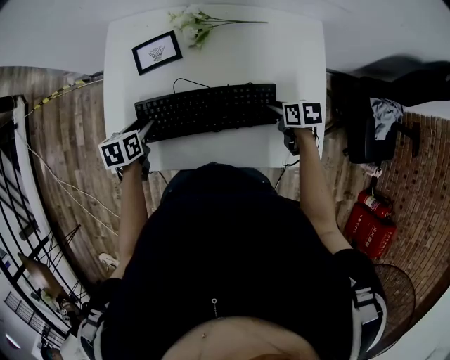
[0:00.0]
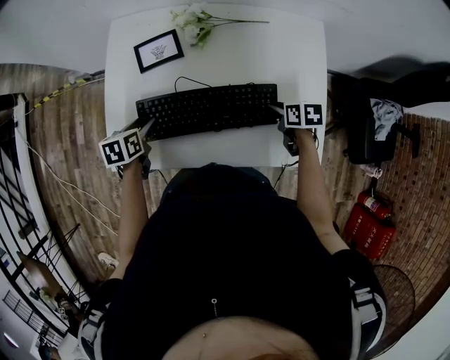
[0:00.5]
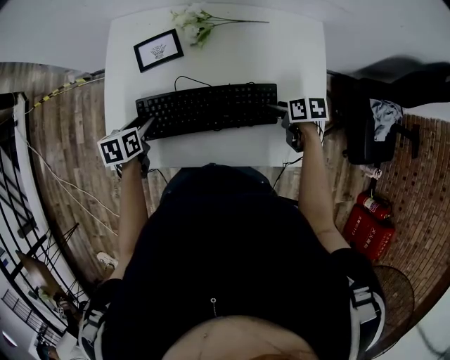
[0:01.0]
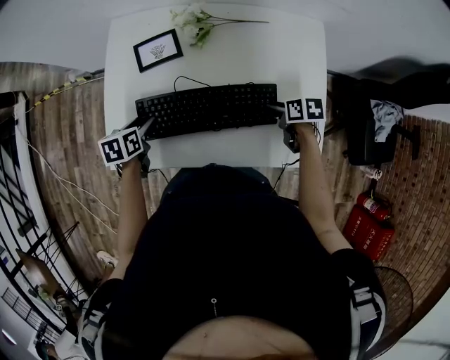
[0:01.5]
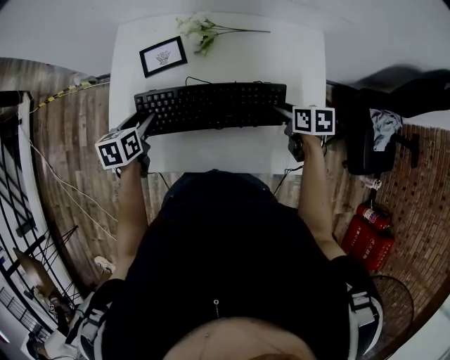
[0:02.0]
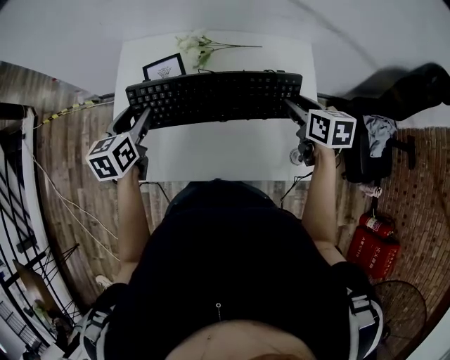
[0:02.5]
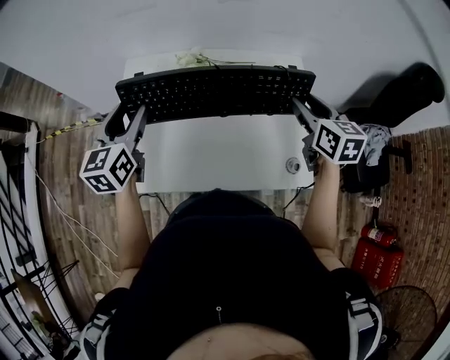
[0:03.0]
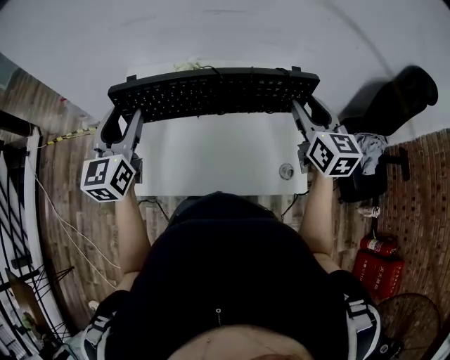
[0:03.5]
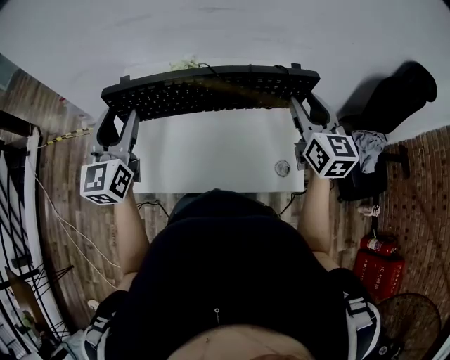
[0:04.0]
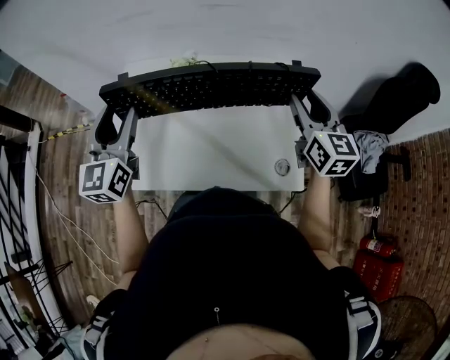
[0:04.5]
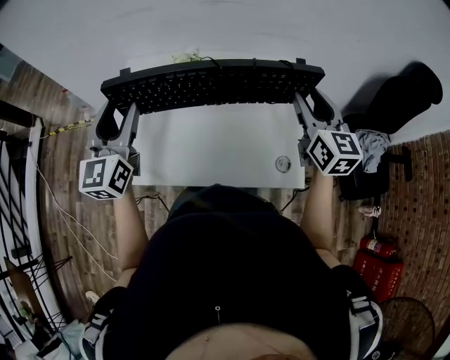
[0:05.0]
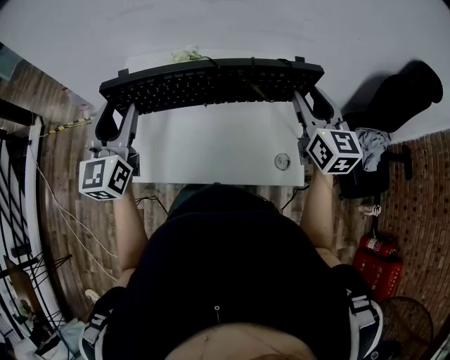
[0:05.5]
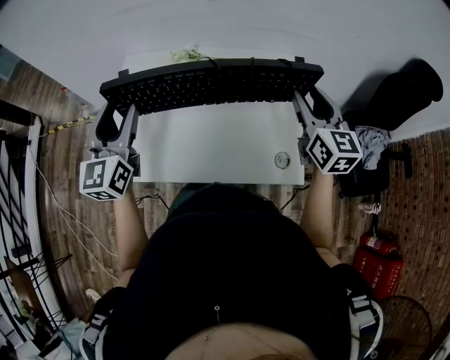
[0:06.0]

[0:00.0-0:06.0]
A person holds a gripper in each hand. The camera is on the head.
0:00.0 to 0:02.0: The right gripper is displaced upward by about 5 cm, while the left gripper shifts by roughly 5 cm.
0:02.0 to 0:04.0: The two grippers go roughly 25 cm upward. The left gripper tilts its fingers some 50 degrees upward, while the right gripper tilts its fingers about 50 degrees upward.
0:04.0 to 0:06.0: The grippers stay close to where they were, moving slightly.

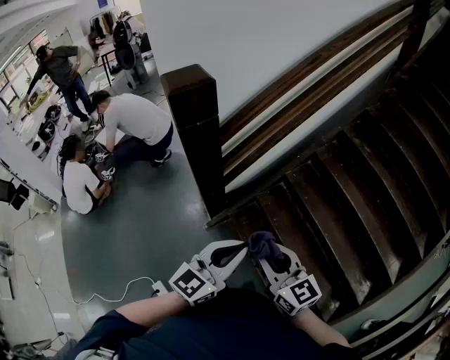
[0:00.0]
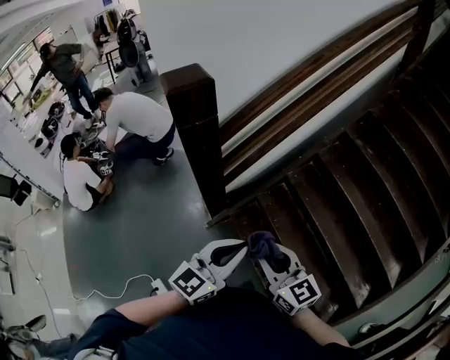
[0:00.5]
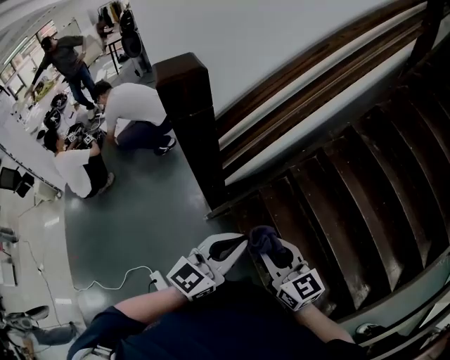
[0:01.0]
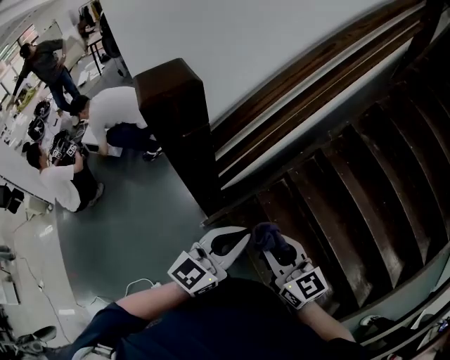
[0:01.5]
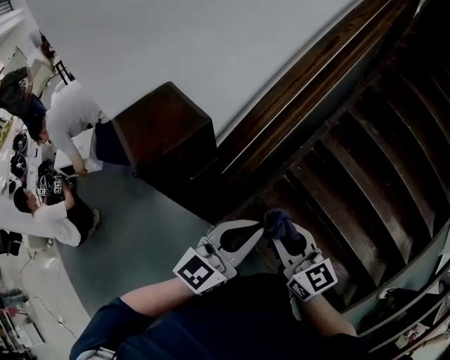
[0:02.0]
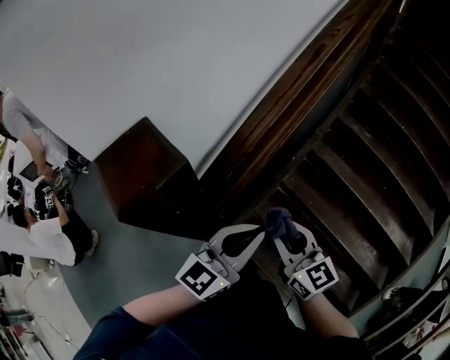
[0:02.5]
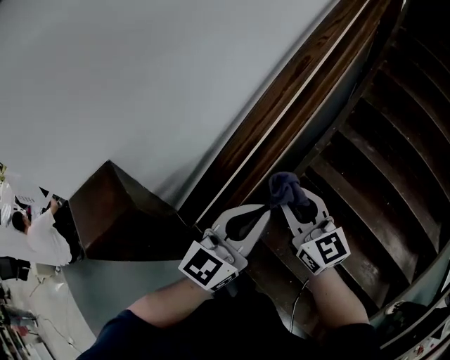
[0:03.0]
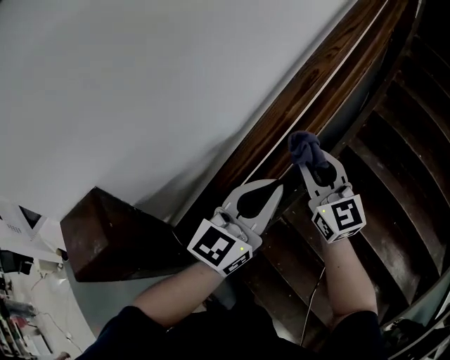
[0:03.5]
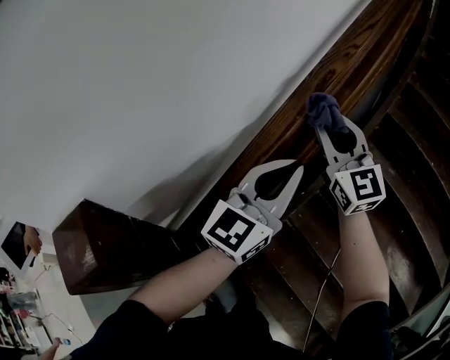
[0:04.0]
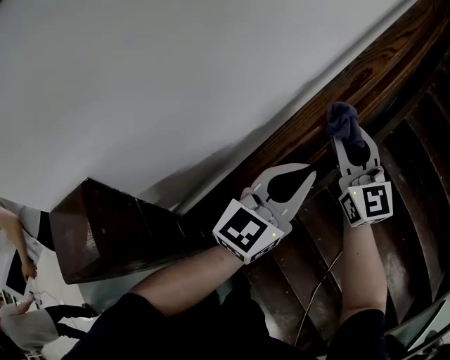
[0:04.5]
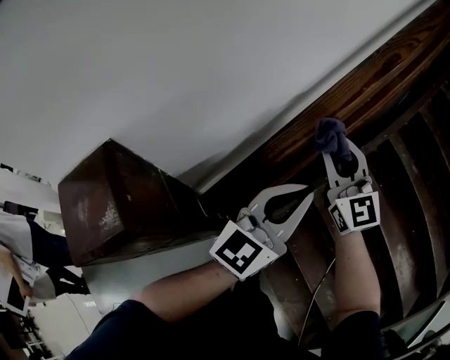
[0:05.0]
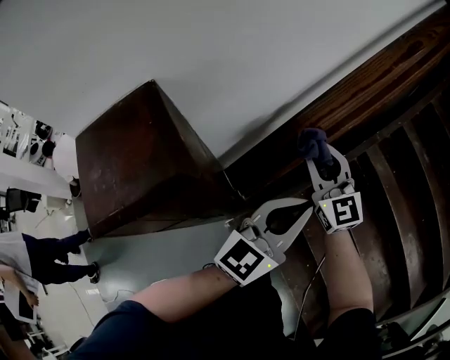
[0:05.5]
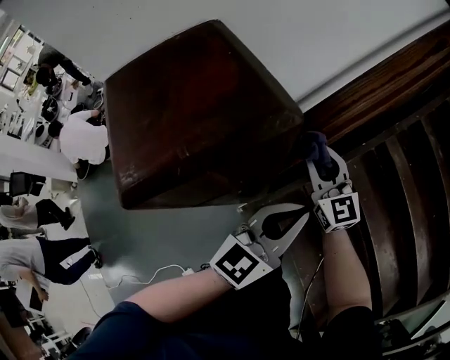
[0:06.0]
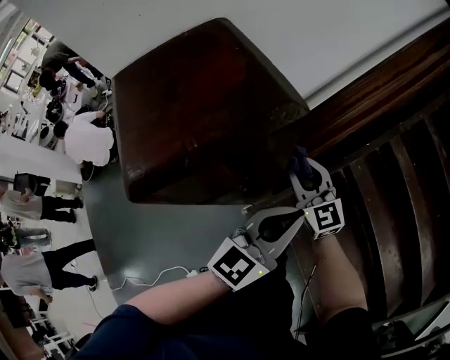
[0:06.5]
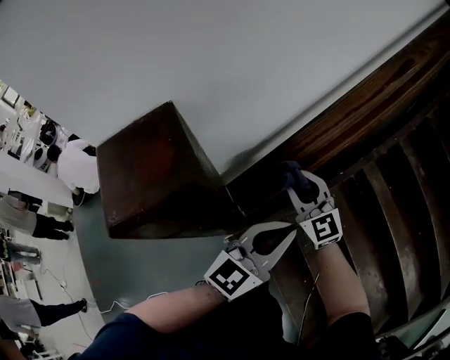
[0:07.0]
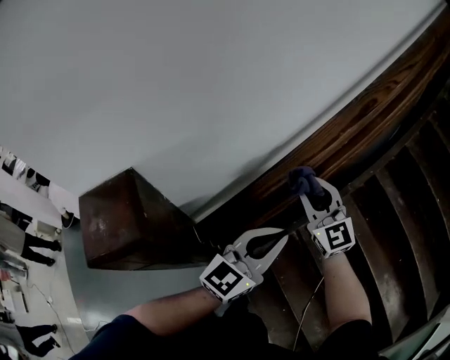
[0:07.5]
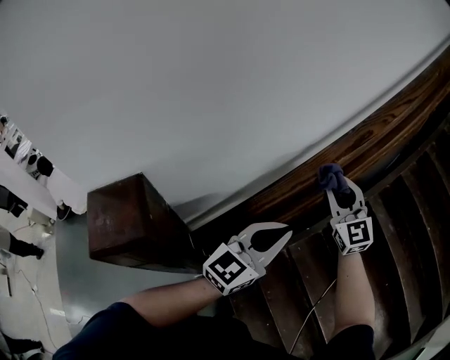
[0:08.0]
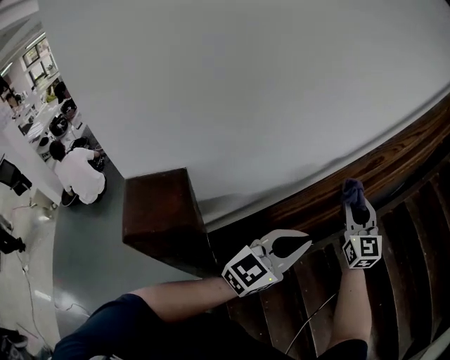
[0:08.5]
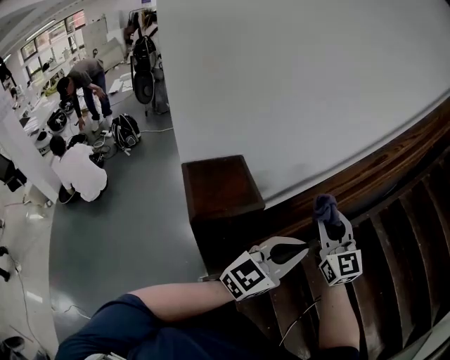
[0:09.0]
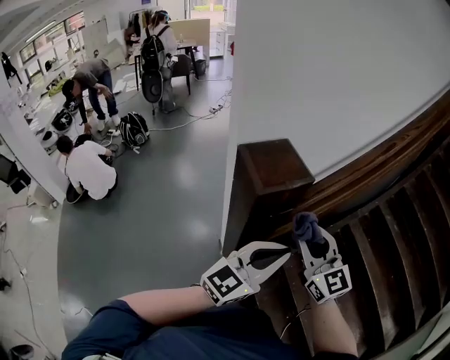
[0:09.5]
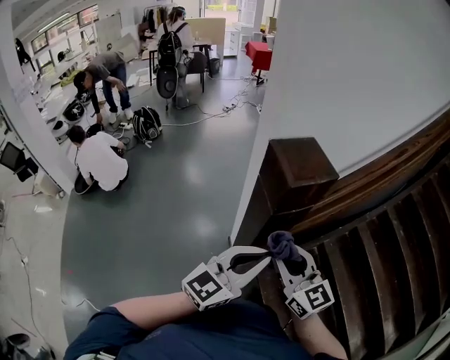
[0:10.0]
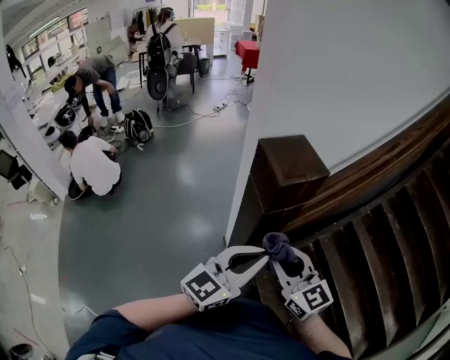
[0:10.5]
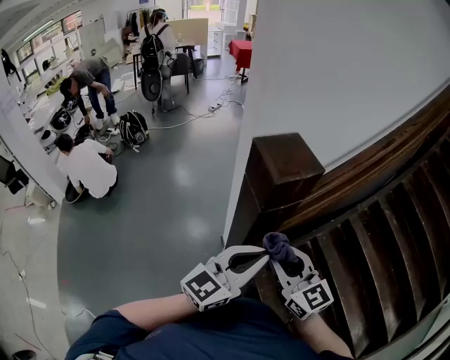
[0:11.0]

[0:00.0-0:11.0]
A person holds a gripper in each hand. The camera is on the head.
0:00.0 to 0:02.0: The grippers both shift forward by approximately 25 cm.
0:02.0 to 0:03.5: The grippers both shift forward by approximately 35 cm. The right gripper rotates approximately 20 degrees.
0:03.5 to 0:05.5: The right gripper is displaced to the left, downward and backward by approximately 25 cm. The left gripper heads downward, backward and to the left, covering about 20 cm.
0:05.5 to 0:07.5: The left gripper is displaced forward and to the right by about 10 cm, while the right gripper shifts about 15 cm to the right, forward and upward.
0:07.5 to 0:09.0: The grippers both shift backward, upward and to the left by some 15 cm.
0:09.0 to 0:11.0: The left gripper travels to the left and backward by some 30 cm, while the right gripper travels backward and to the left by about 35 cm, and rotates approximately 20 degrees.

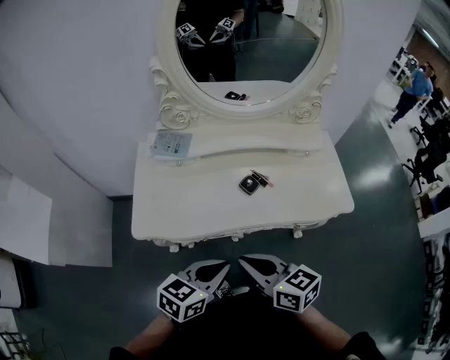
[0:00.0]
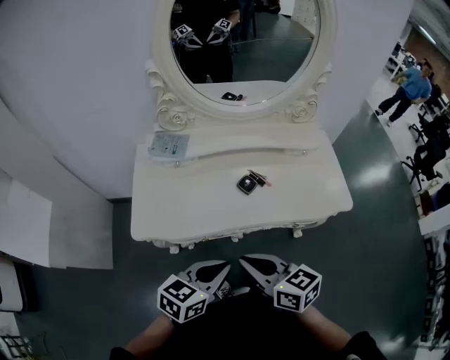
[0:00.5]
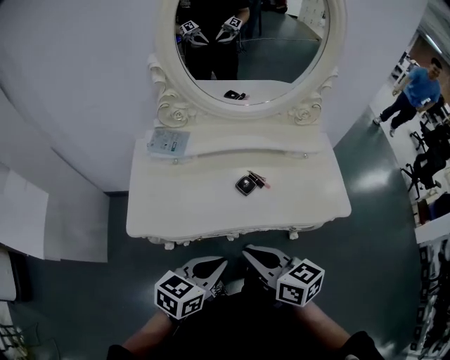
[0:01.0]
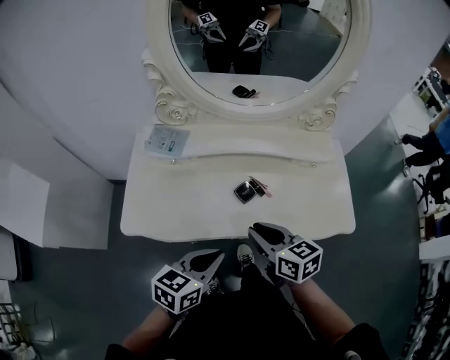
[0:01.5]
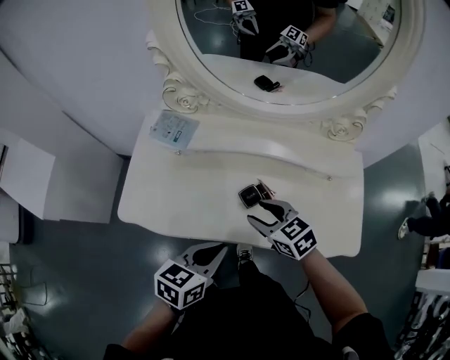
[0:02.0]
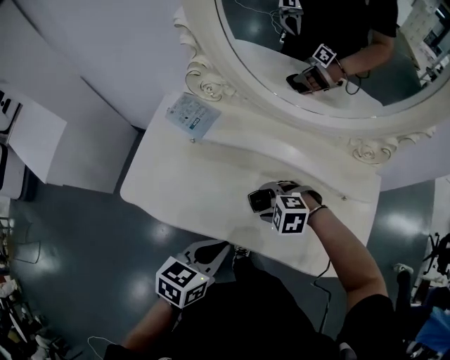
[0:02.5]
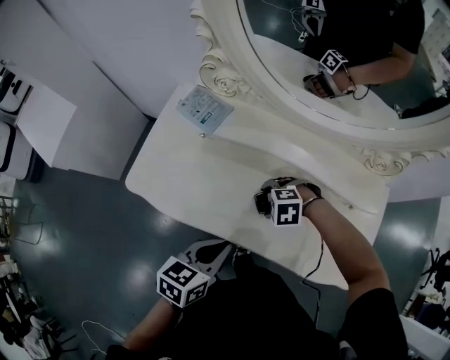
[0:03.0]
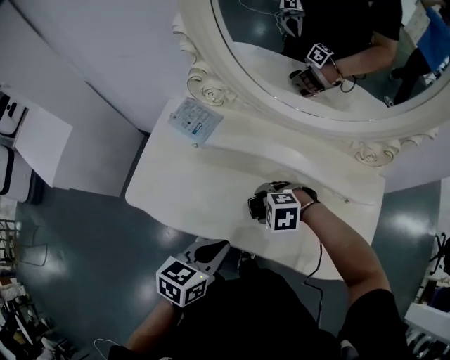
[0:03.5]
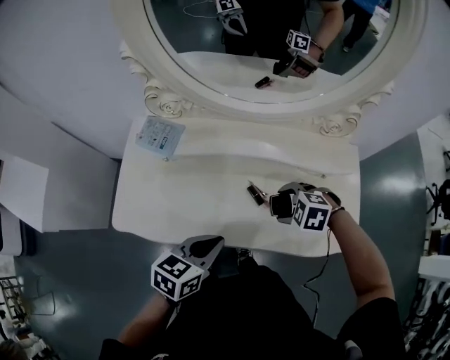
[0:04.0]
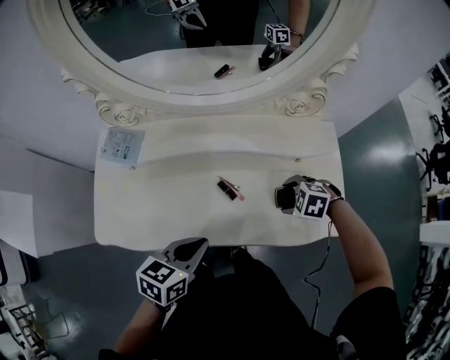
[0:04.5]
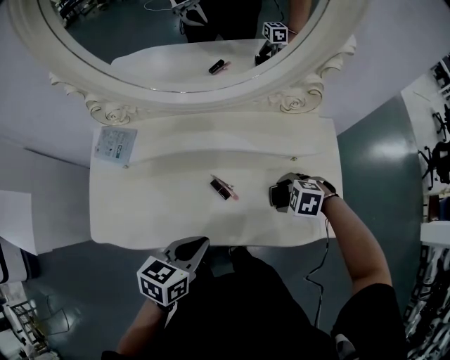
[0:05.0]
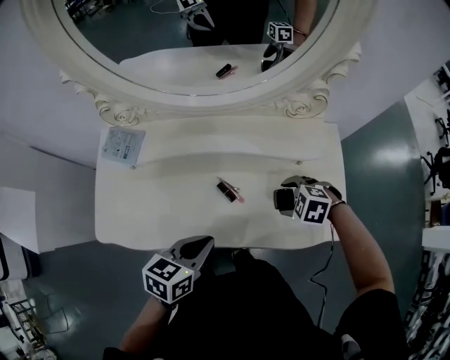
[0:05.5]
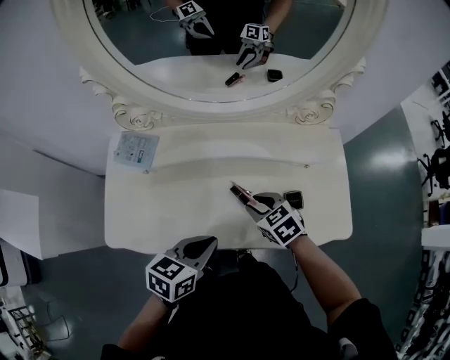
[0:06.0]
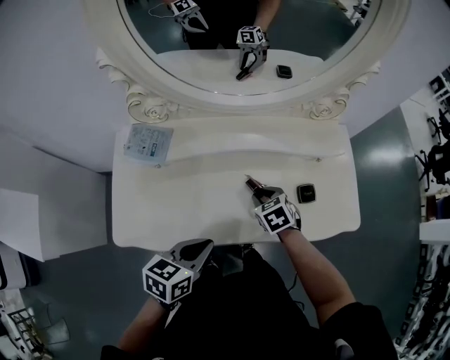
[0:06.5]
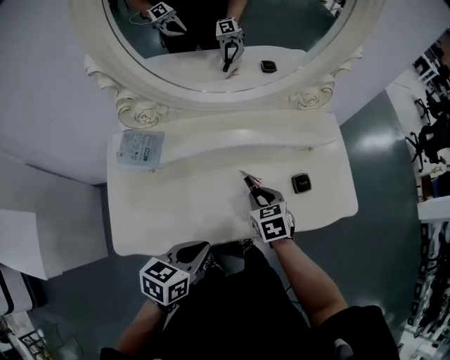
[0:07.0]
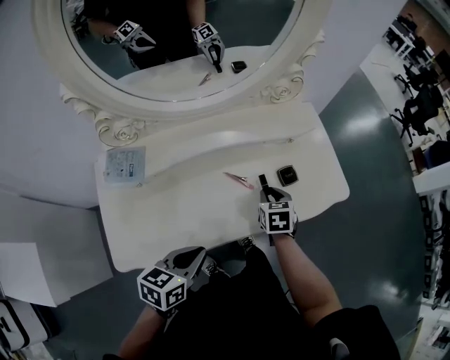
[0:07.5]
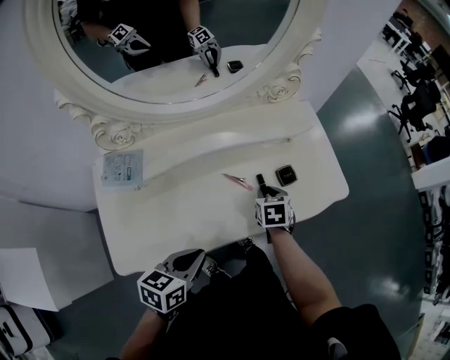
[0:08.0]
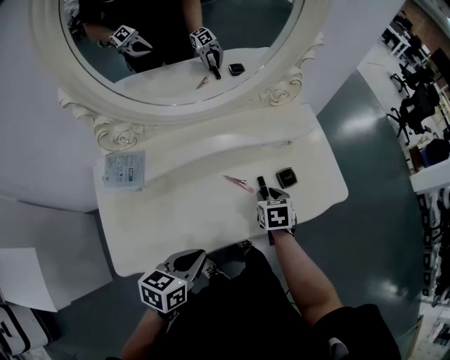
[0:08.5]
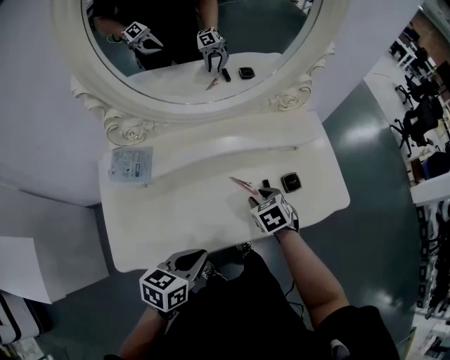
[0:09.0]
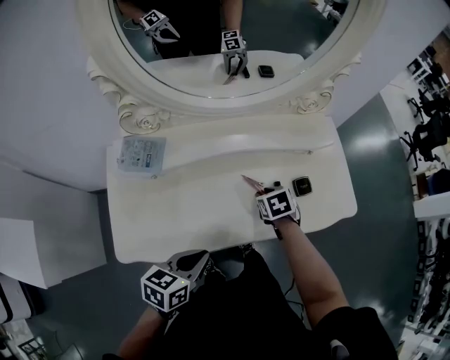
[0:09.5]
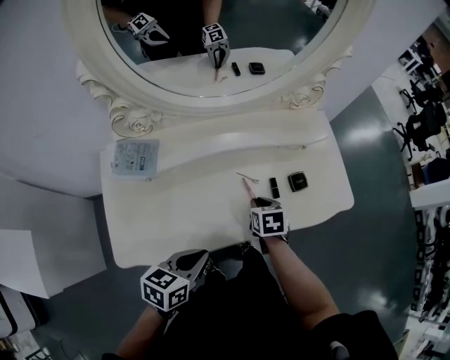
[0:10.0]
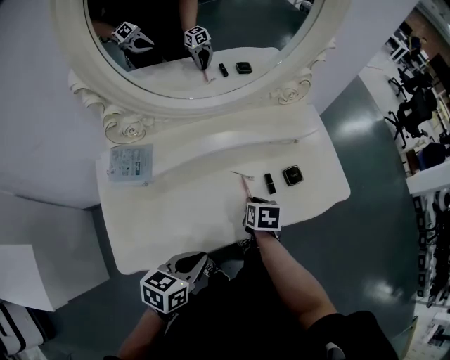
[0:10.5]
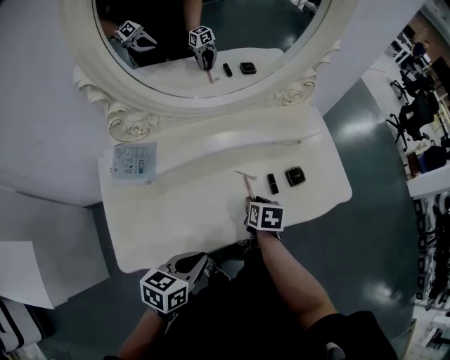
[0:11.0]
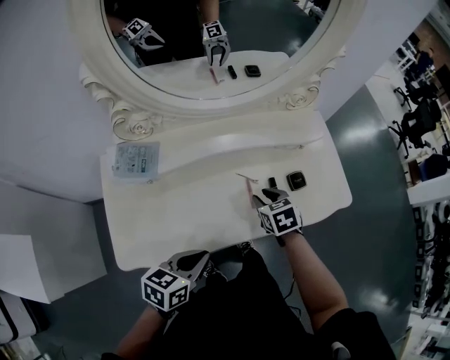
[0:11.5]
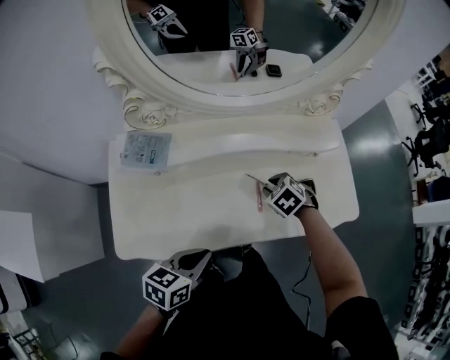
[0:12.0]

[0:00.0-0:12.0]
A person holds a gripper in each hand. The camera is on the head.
0:00.0 to 0:02.0: The left gripper goes approximately 15 cm forward and to the right, and turns by about 20 degrees; the right gripper is displaced forward, downward and to the right by roughly 25 cm, changes its angle by approximately 40 degrees, and opens up.
0:02.0 to 0:04.0: The right gripper ends up some 10 cm from where it was, points its fingers approximately 30 degrees further downward, and opens up.
0:04.0 to 0:06.0: The right gripper rotates around the line of its fingers by roughly 40 degrees, clockwise from behind, and closes its fingers.
0:06.0 to 0:08.0: The right gripper ends up roughly 10 cm from where it was, and turns by roughly 50 degrees. The left gripper shifts by approximately 10 cm.
0:08.0 to 0:10.0: The right gripper heads to the left, covering some 5 cm.
0:10.0 to 0:12.0: The right gripper is displaced forward by approximately 5 cm, and twists some 50 degrees counterclockwise, seen from behind.
